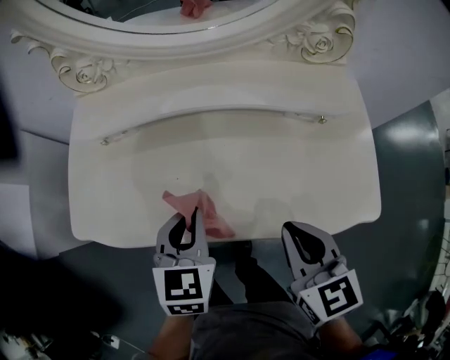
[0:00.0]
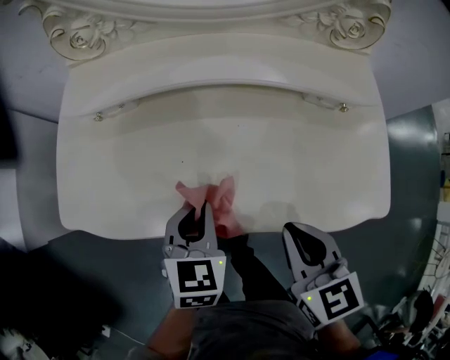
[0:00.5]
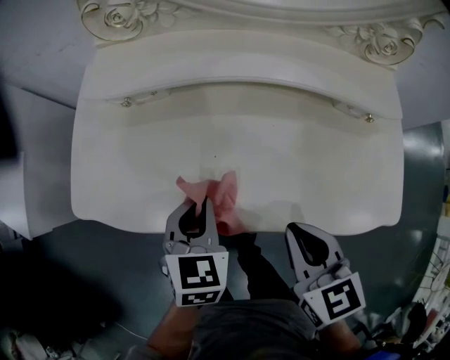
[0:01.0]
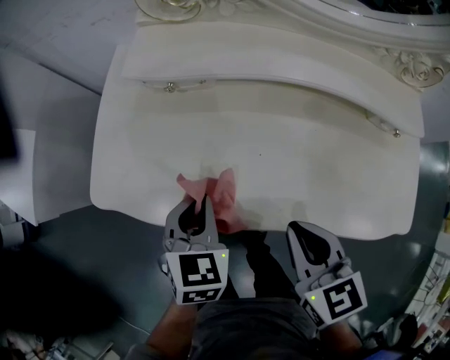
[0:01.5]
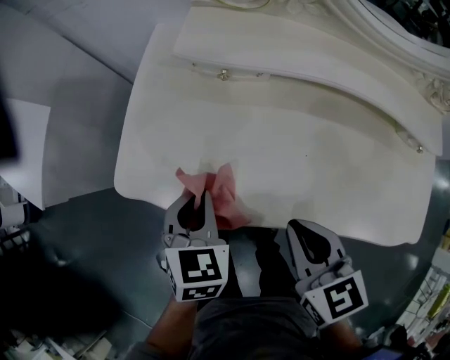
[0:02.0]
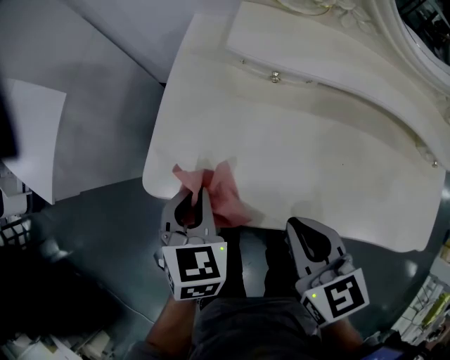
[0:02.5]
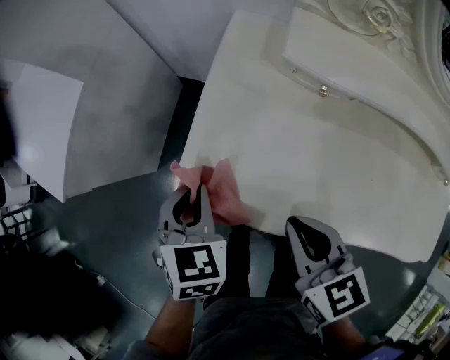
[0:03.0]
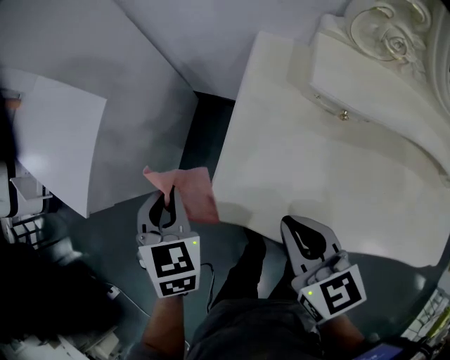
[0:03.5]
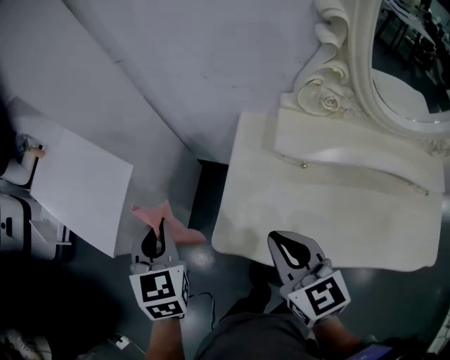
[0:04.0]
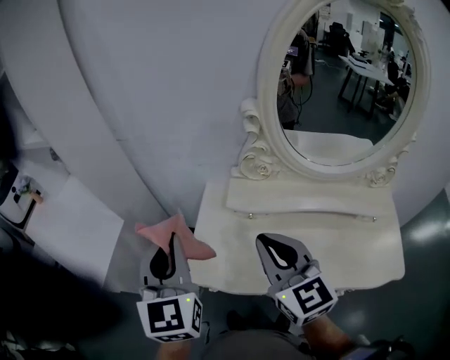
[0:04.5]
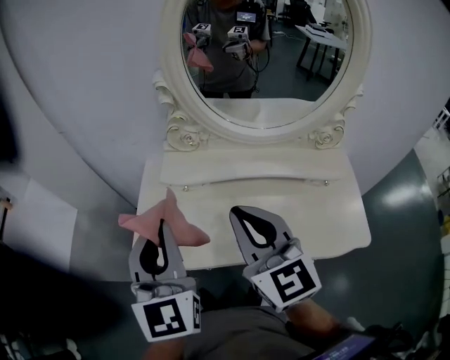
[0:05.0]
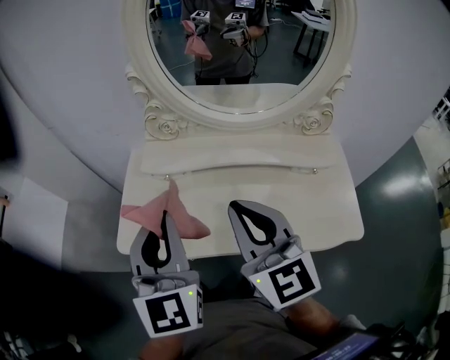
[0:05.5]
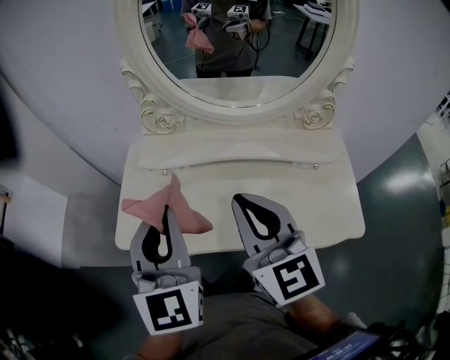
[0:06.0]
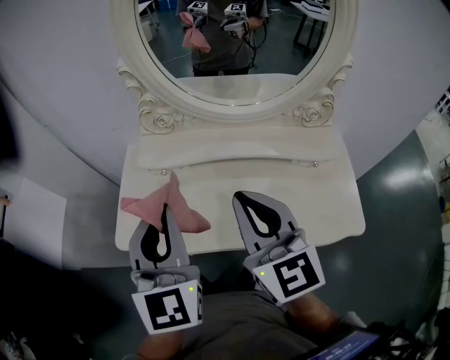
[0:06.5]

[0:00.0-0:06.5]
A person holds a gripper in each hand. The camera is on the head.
0.0 to 2.0 s: The two grippers go approximately 25 cm to the left.
2.0 to 4.5 s: The right gripper moves upward and forward, approximately 30 cm, and tips its fingers upward by approximately 30 degrees; the left gripper shifts roughly 35 cm upward, and tips its fingers upward by approximately 40 degrees.
4.5 to 6.5 s: The two grippers go some 25 cm to the right.

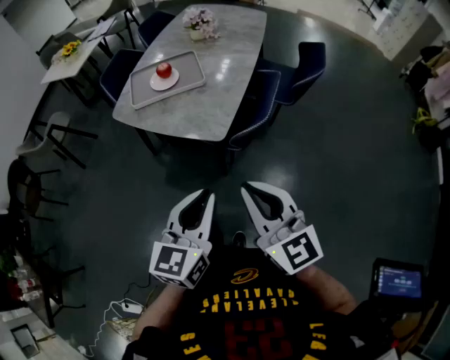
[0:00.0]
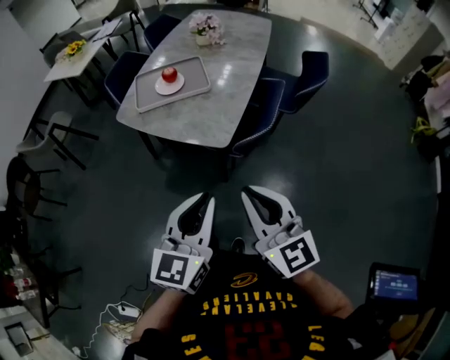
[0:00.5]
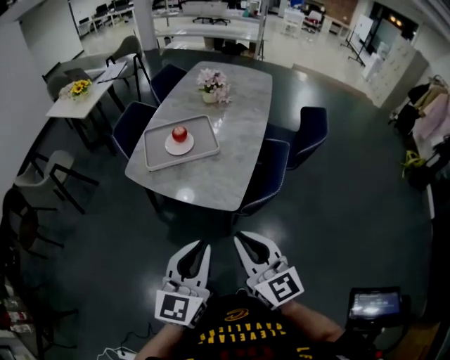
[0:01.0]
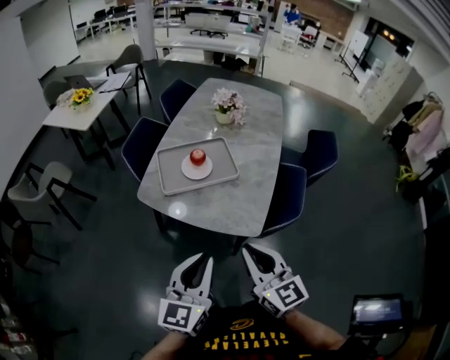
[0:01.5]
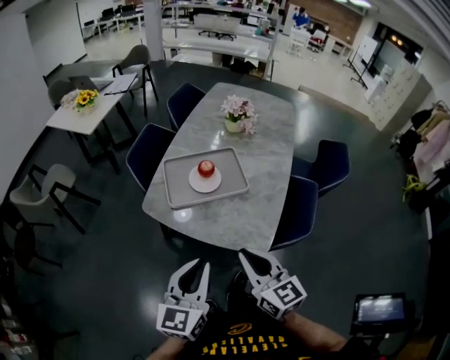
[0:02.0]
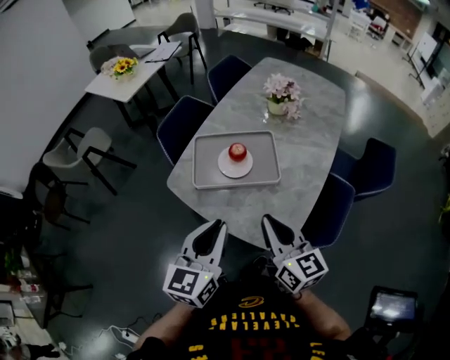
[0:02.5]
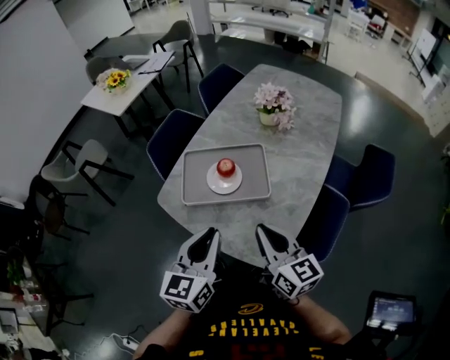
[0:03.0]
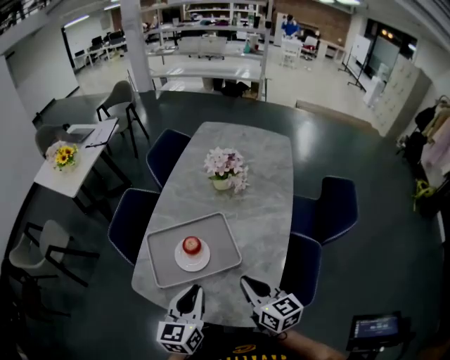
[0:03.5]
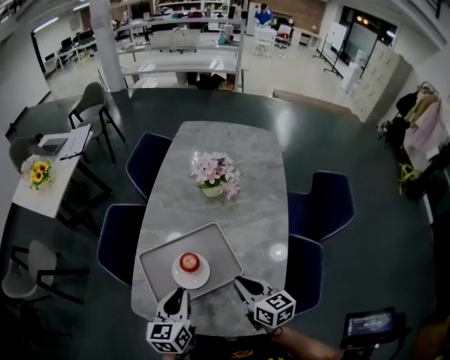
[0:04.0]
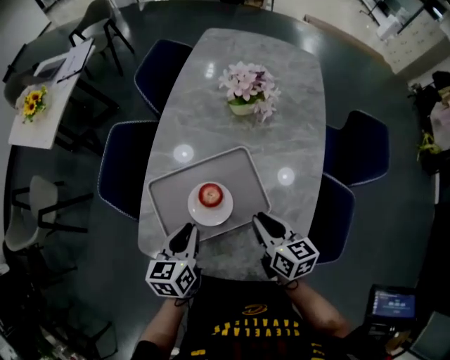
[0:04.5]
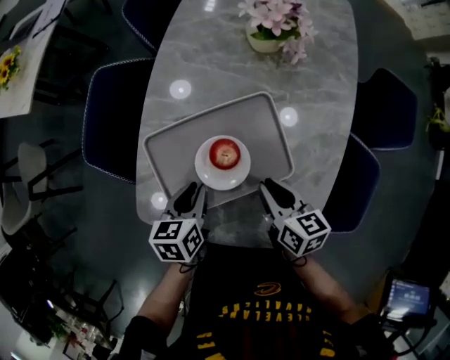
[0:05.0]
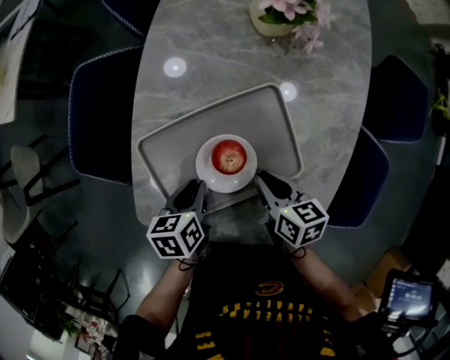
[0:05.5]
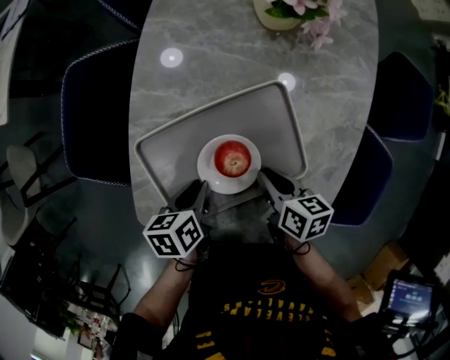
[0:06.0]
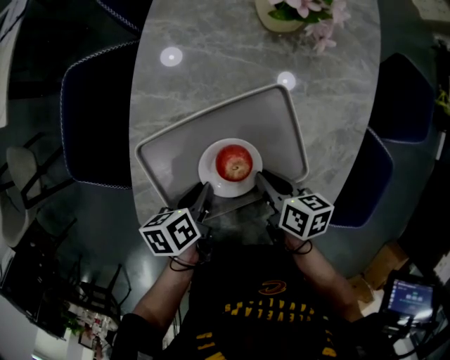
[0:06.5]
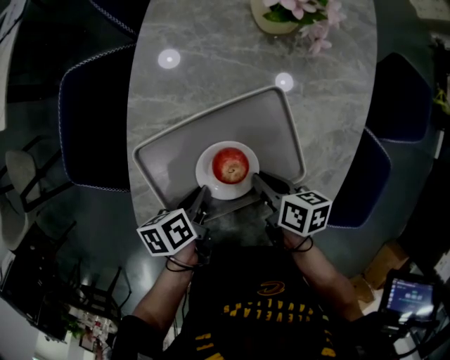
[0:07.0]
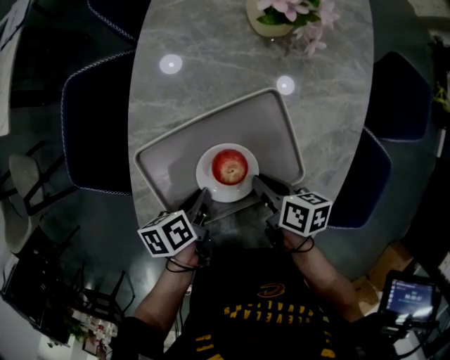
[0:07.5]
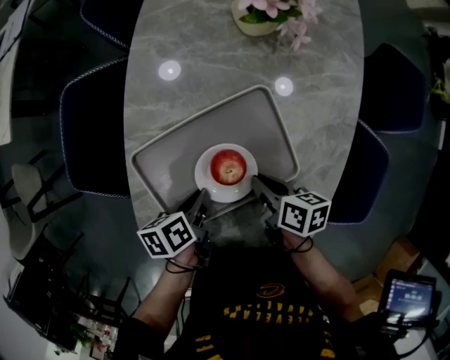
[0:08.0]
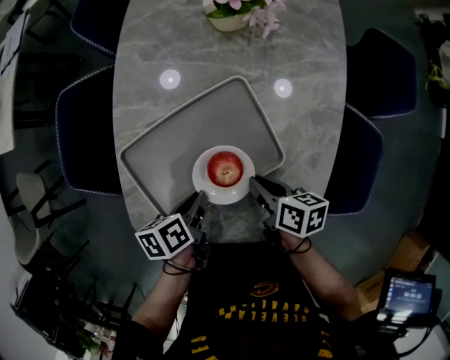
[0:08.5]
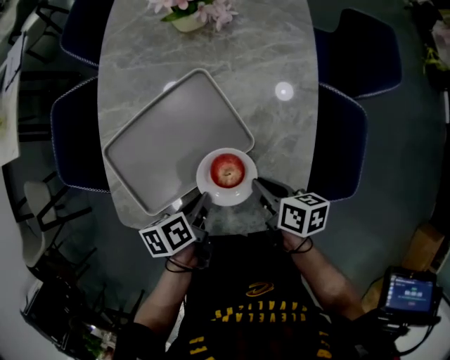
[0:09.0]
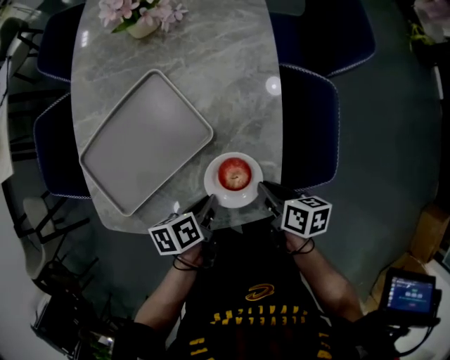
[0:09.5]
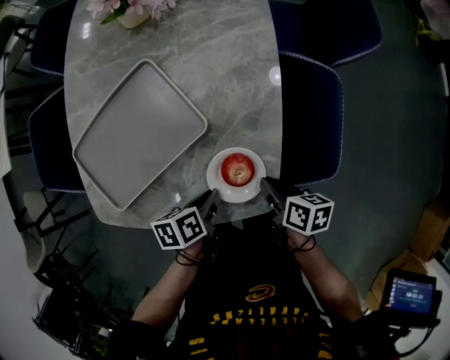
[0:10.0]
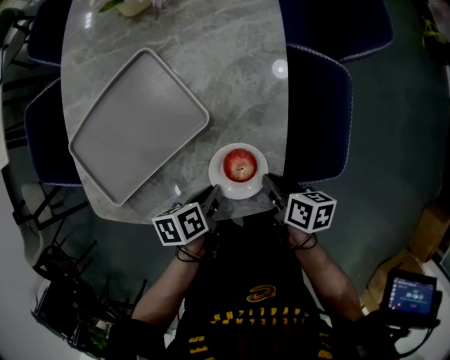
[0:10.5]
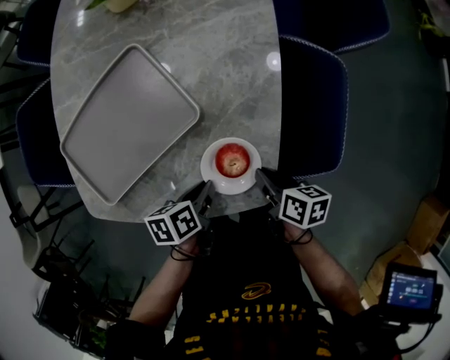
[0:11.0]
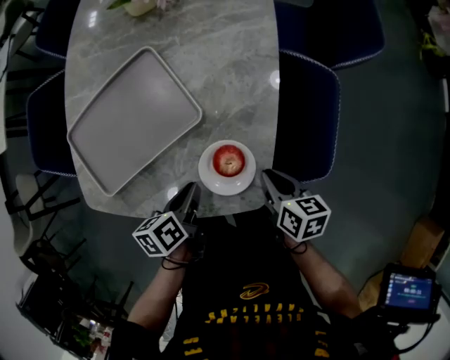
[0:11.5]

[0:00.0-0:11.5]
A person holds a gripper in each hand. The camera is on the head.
0.0 to 2.0 s: The left gripper shifts some 30 cm to the left and forward. Meanwhile the right gripper travels forward and to the left by approximately 30 cm.
2.0 to 4.0 s: Both grippers move forward, some 30 cm. The right gripper turns by some 20 degrees.
4.0 to 6.0 s: The left gripper shifts about 15 cm downward, and swivels approximately 50 degrees. The right gripper travels downward and to the left by roughly 15 cm, and rotates some 40 degrees.
6.0 to 7.5 s: The grippers stay close to where they were, moving slightly.
7.5 to 9.5 s: Both grippers move to the right and backward, some 25 cm.
9.5 to 11.5 s: The grippers make only small movements.

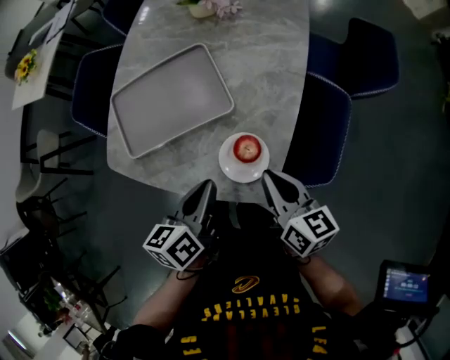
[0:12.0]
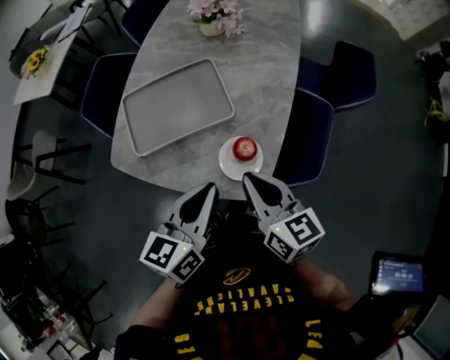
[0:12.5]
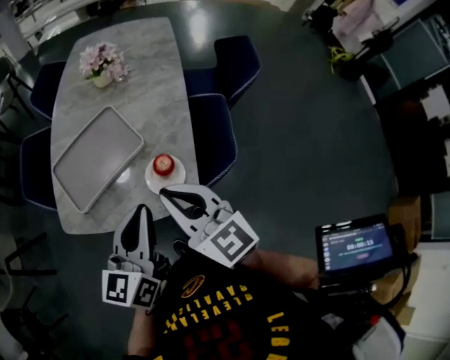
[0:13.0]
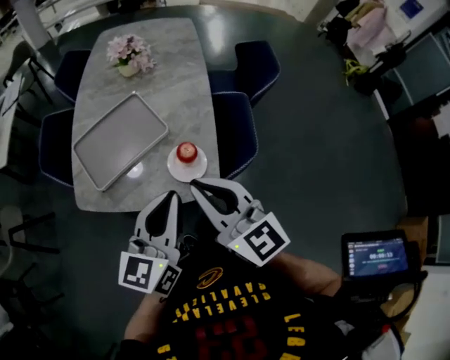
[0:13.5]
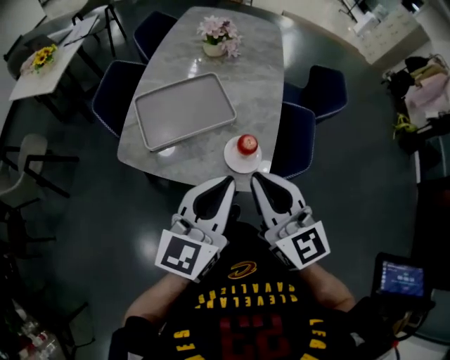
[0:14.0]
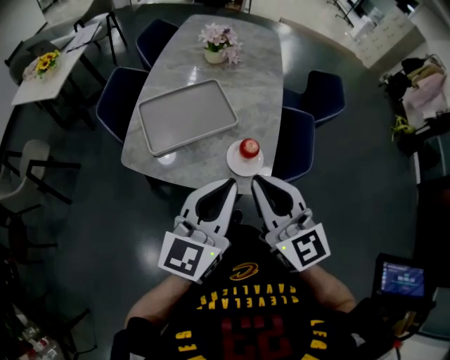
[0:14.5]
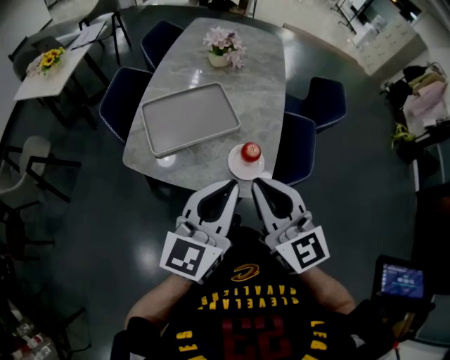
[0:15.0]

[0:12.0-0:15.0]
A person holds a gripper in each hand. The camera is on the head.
12.0 to 13.5 s: The right gripper heads upward, backward and to the left, covering some 25 cm, and rotates some 40 degrees. Meanwhile the left gripper shifts approximately 20 cm upward and backward, and swivels approximately 40 degrees.
13.5 to 15.0 s: The left gripper moves some 5 cm.

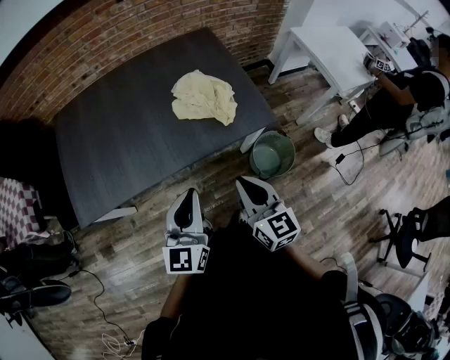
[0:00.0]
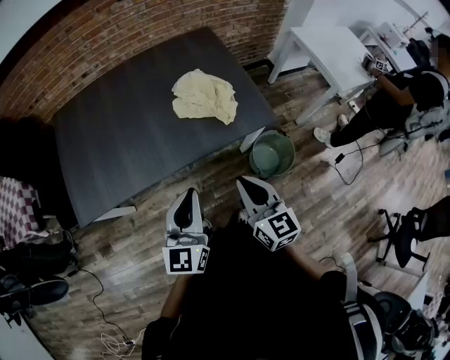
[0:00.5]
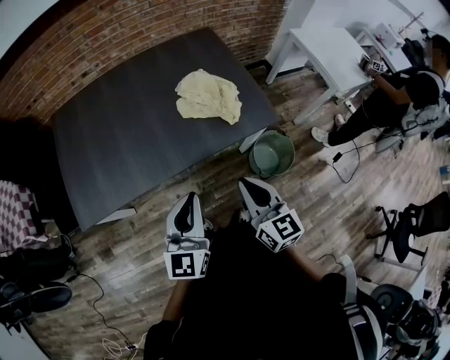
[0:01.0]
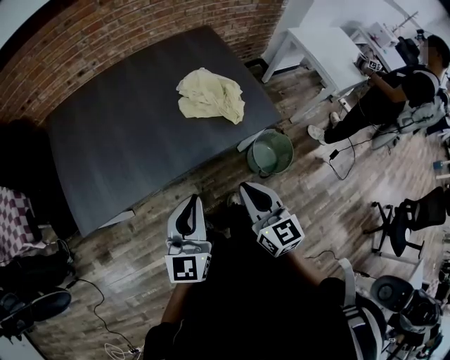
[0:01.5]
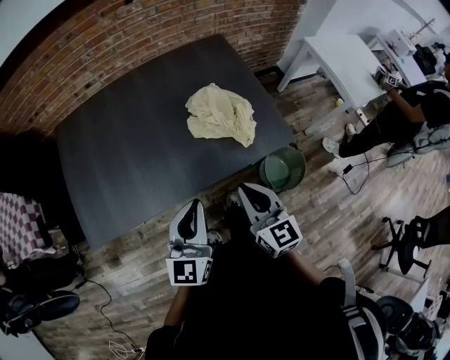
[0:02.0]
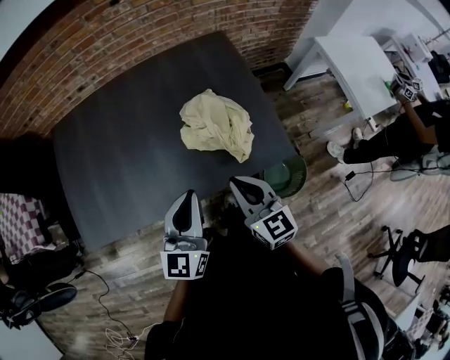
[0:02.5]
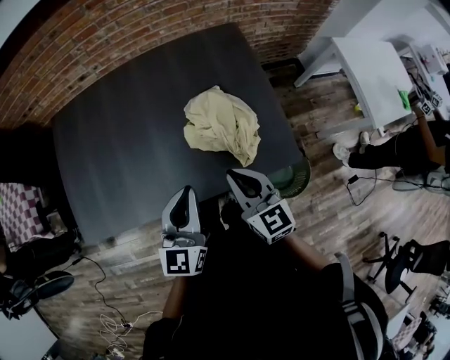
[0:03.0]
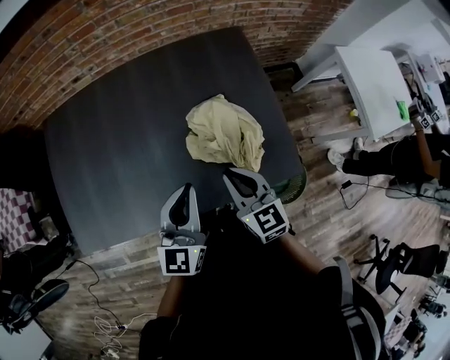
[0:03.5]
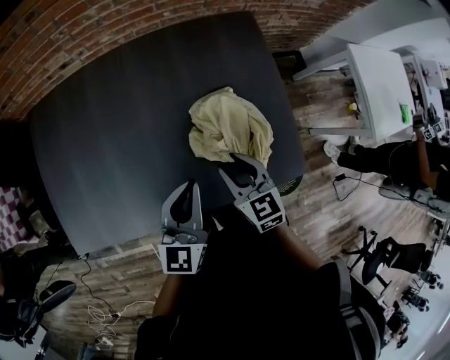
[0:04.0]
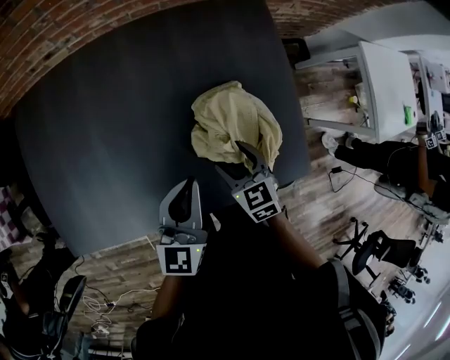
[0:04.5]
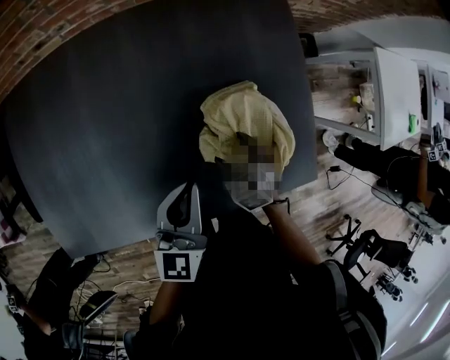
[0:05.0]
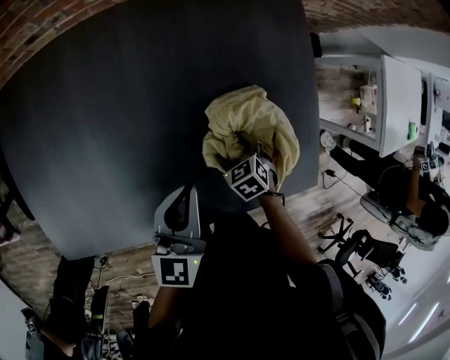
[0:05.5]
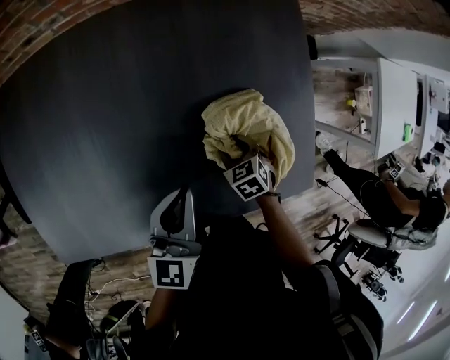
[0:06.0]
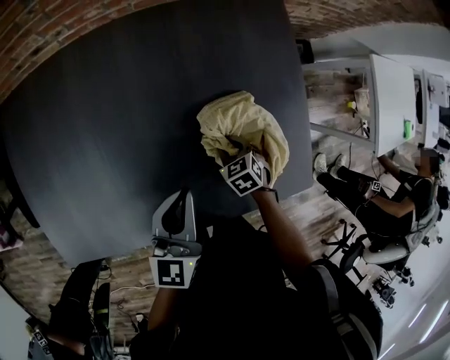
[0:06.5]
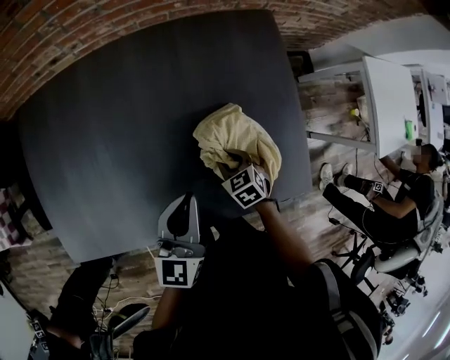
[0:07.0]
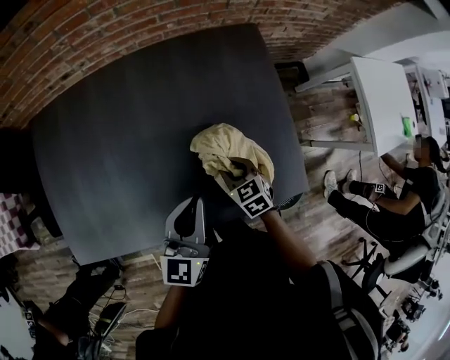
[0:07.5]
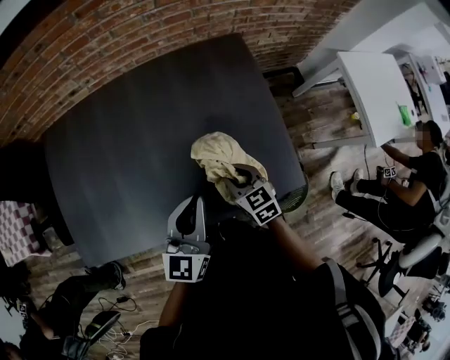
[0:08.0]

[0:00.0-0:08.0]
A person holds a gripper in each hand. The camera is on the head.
0.0 to 2.0 s: The two grippers go about 10 cm forward and to the left.
2.0 to 4.0 s: The right gripper heads forward and downward, covering about 30 cm, and changes its angle by roughly 20 degrees. The left gripper heads forward, covering approximately 25 cm.
4.0 to 6.0 s: The right gripper shifts some 25 cm downward, angles its fingers downward, by roughly 40 degrees, and opens, then closes again, while the left gripper moves downward, forward and to the left, approximately 15 cm.
6.0 to 8.0 s: The right gripper shifts roughly 20 cm upward and backward, and angles its fingers upward, by roughly 30 degrees, while the left gripper travels backward, upward and to the right by roughly 20 cm.
